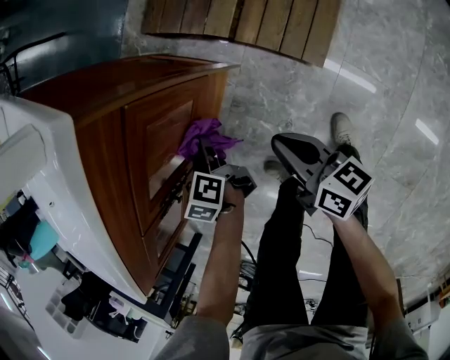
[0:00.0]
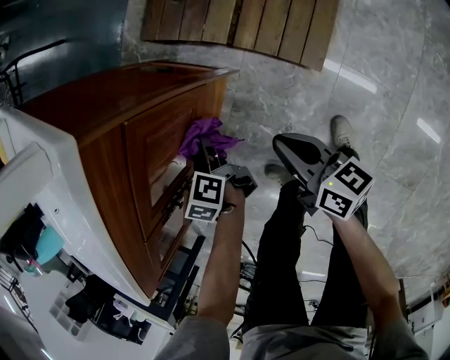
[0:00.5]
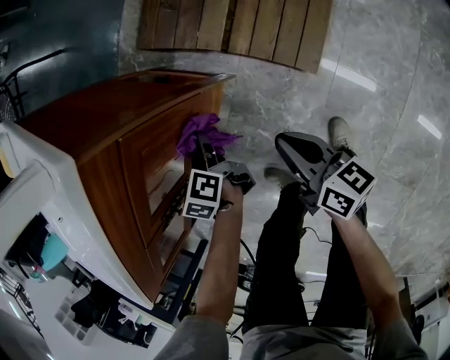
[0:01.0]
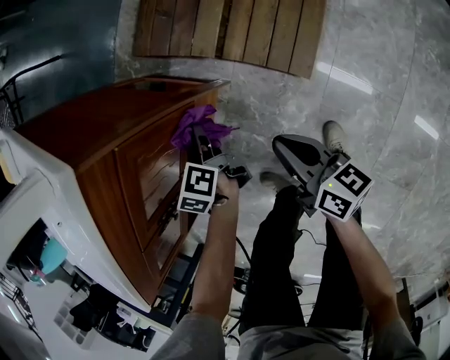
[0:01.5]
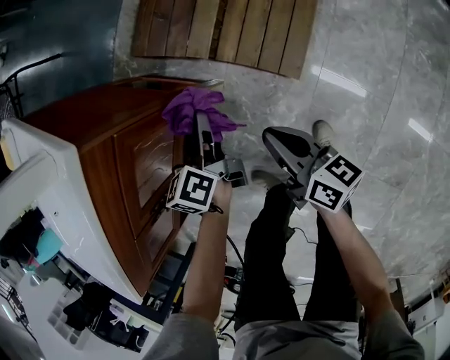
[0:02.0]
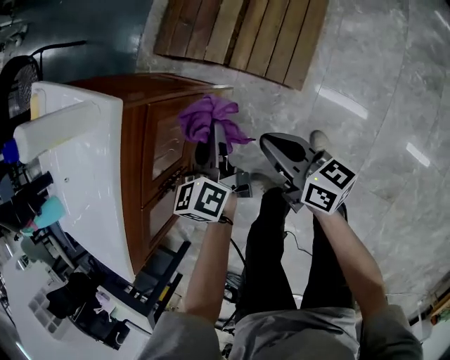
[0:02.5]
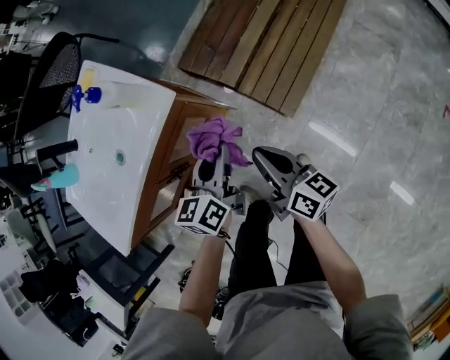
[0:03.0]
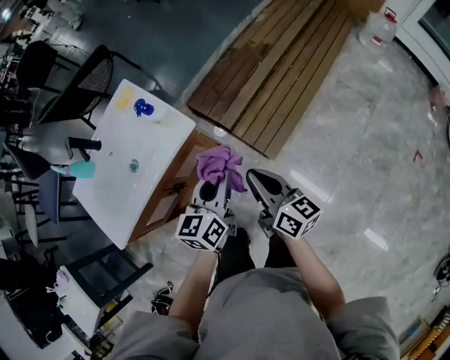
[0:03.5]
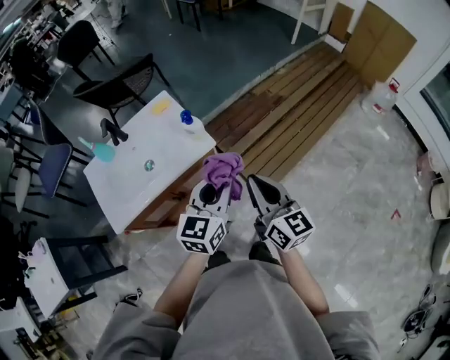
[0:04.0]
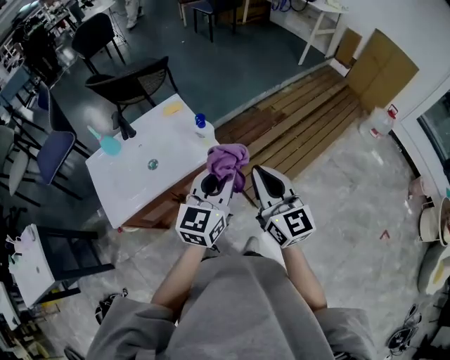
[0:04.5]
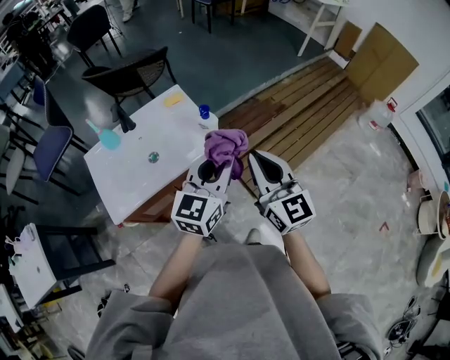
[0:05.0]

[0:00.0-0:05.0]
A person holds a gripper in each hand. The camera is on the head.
0.0 to 2.5 s: The left gripper moves upward and to the right, some 25 cm, and rotates about 30 degrees; the right gripper is displaced upward and to the right by about 10 cm.
2.5 to 5.0 s: The grippers both shift upward by some 50 cm. The left gripper swivels roughly 40 degrees. Meanwhile the right gripper twists about 60 degrees counterclockwise, seen from behind.

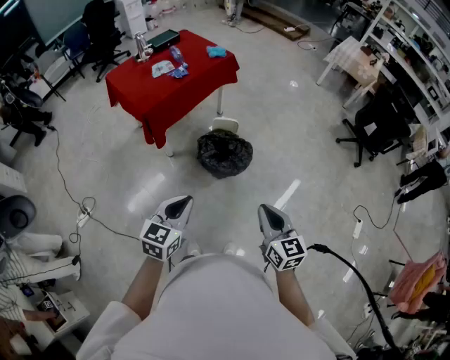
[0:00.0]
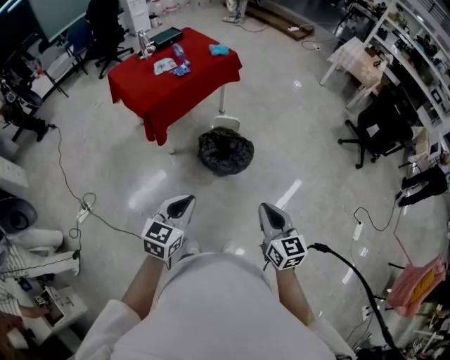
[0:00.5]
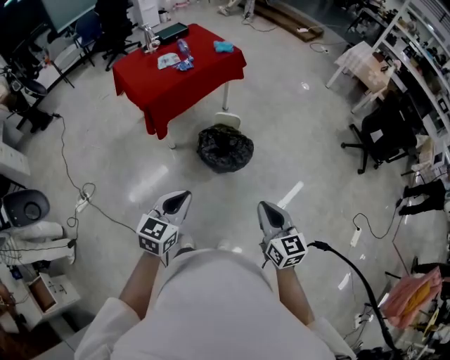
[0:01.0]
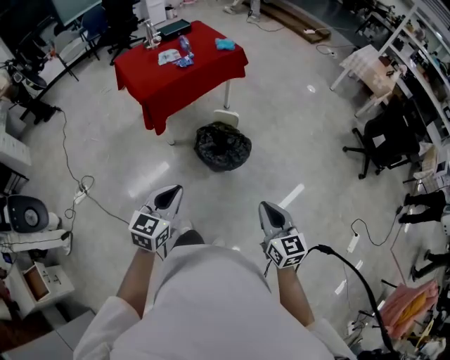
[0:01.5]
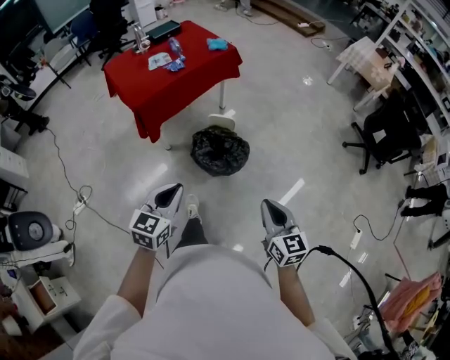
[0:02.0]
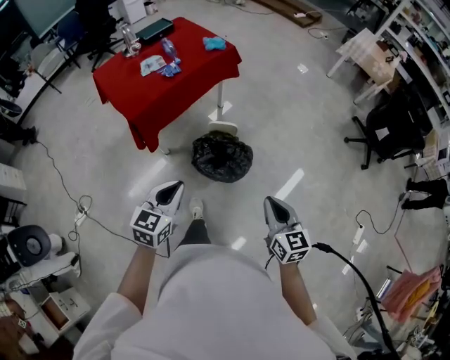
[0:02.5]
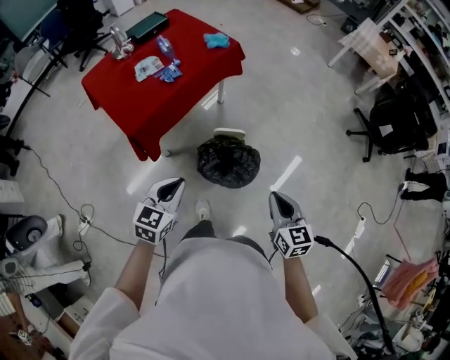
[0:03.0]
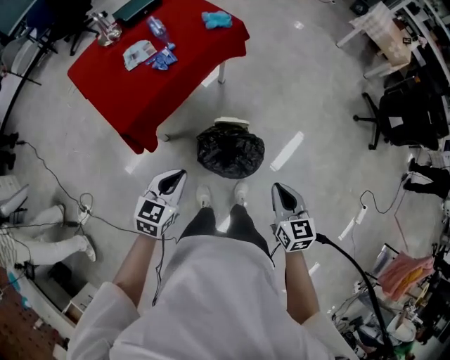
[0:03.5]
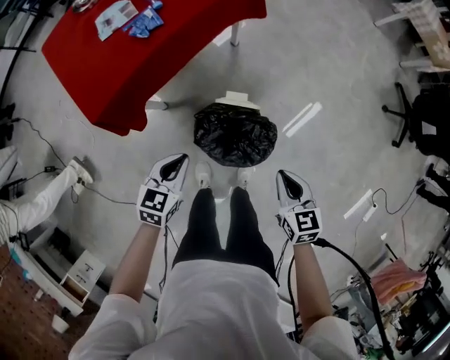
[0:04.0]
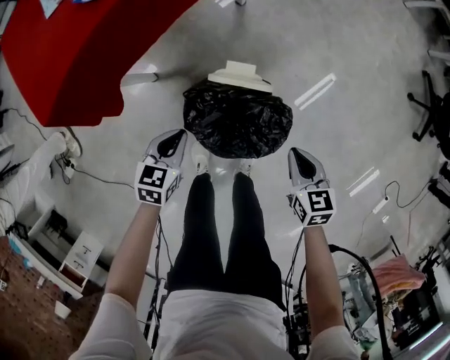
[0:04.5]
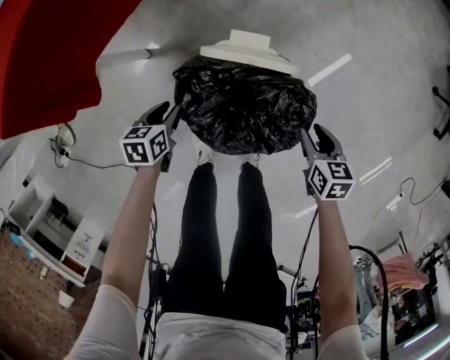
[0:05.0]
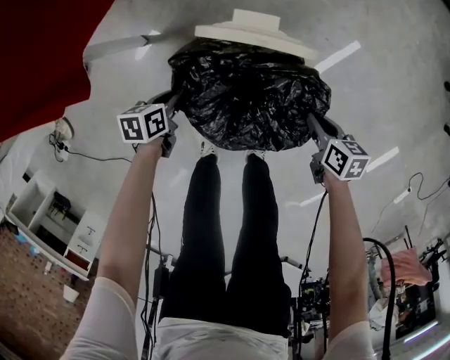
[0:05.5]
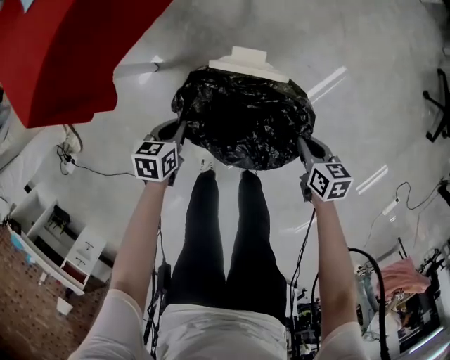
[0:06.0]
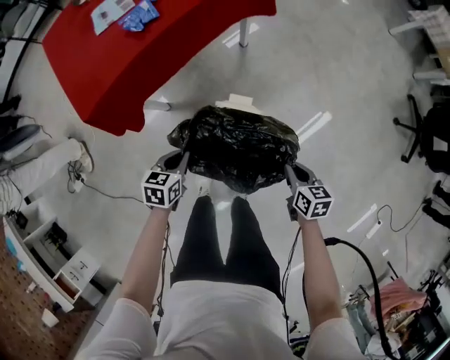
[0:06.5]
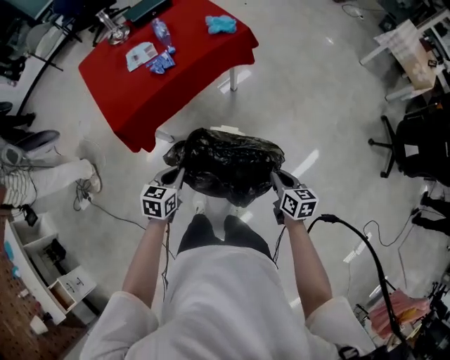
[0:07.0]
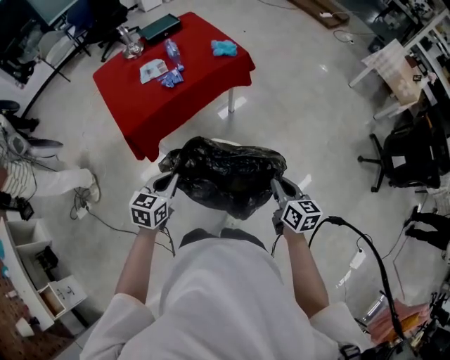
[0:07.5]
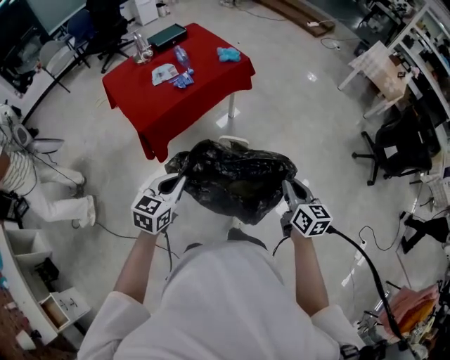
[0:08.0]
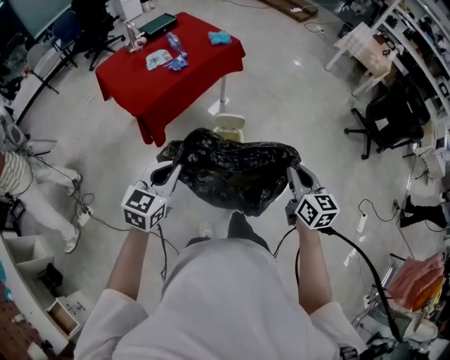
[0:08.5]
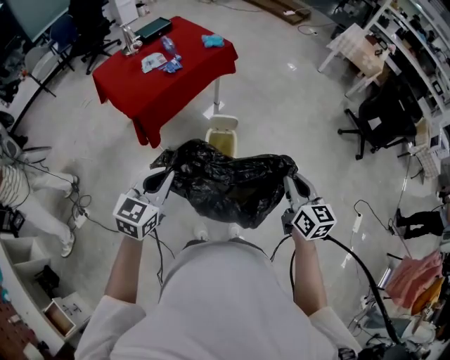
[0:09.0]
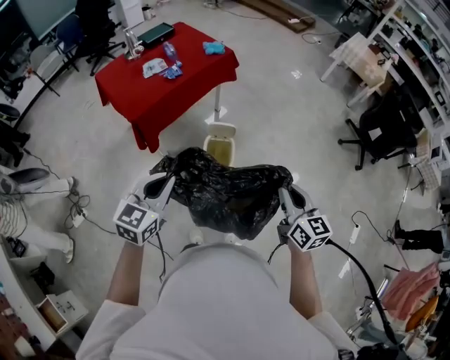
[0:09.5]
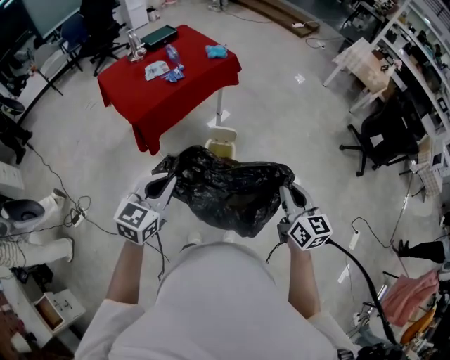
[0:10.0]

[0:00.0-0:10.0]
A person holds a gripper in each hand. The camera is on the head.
0.0 to 2.0 s: The right gripper is displaced to the right and forward by approximately 10 cm. The left gripper goes some 10 cm forward and to the right.
2.0 to 4.0 s: The grippers both shift forward and downward by some 50 cm. The right gripper rotates about 20 degrees, while the left gripper swivels roughly 20 degrees.
4.0 to 6.0 s: Both grippers travel together downward, roughly 35 cm. The left gripper turns by approximately 30 degrees, and opens, then closes again. The right gripper changes its angle by some 20 degrees, and opens and closes again.
6.0 to 8.0 s: Both grippers travel together upward, some 60 cm. The left gripper angles its fingers upward, by roughly 30 degrees, while the right gripper tilts its fingers about 30 degrees upward.
8.0 to 10.0 s: The two grippers go roughly 15 cm backward and upward.

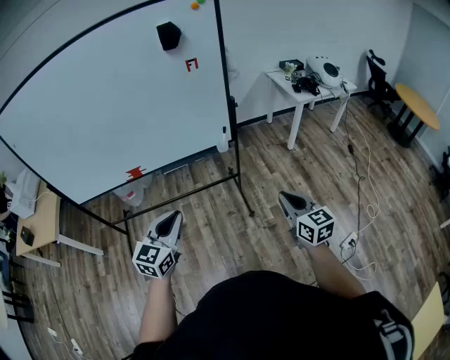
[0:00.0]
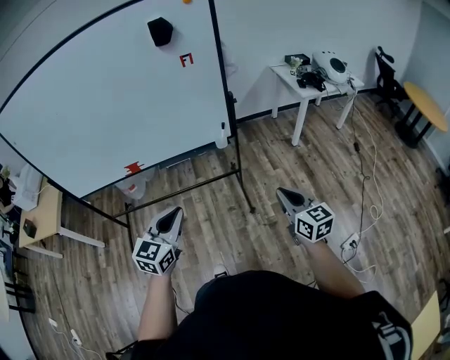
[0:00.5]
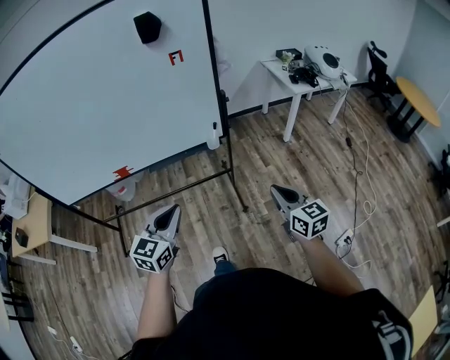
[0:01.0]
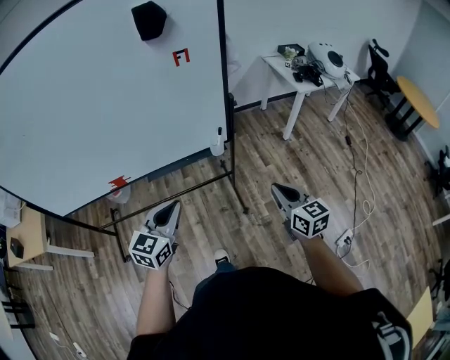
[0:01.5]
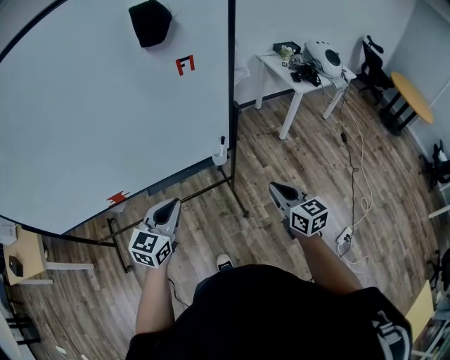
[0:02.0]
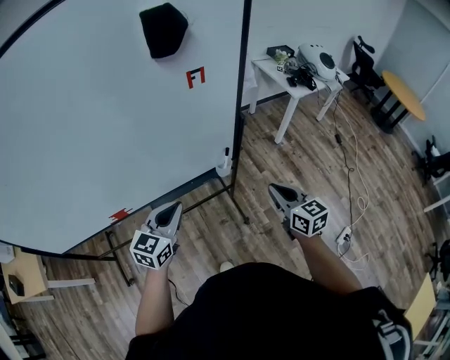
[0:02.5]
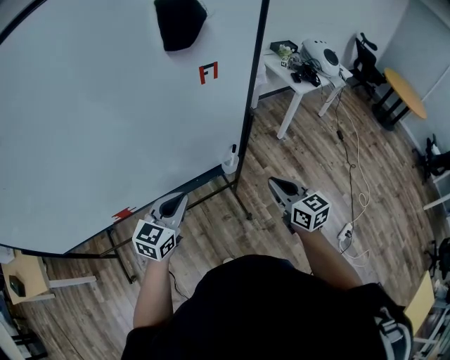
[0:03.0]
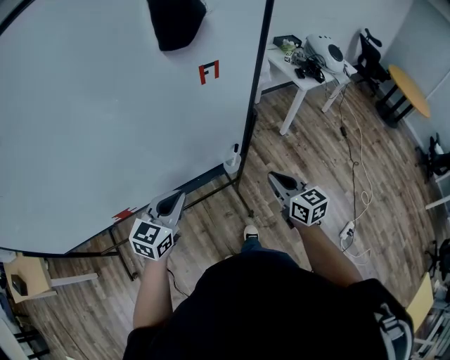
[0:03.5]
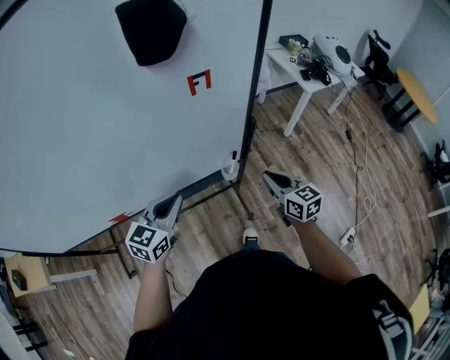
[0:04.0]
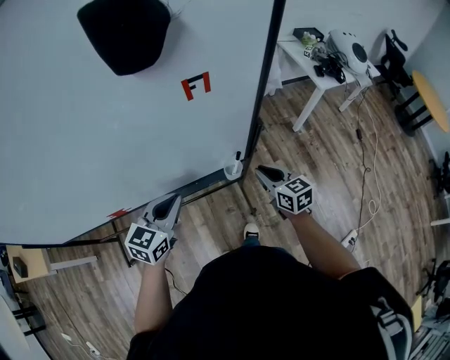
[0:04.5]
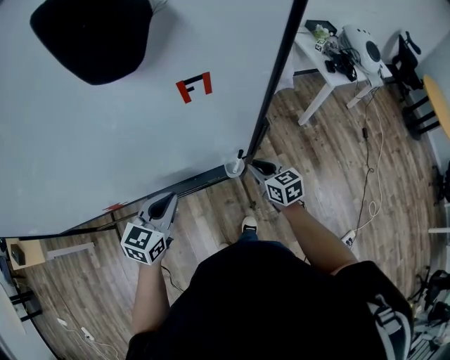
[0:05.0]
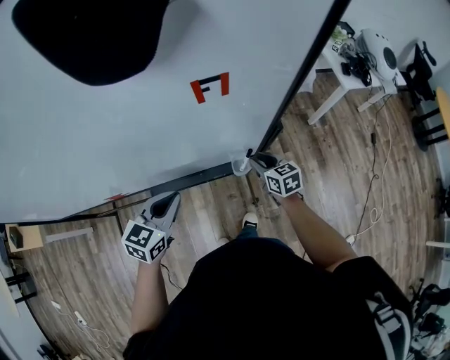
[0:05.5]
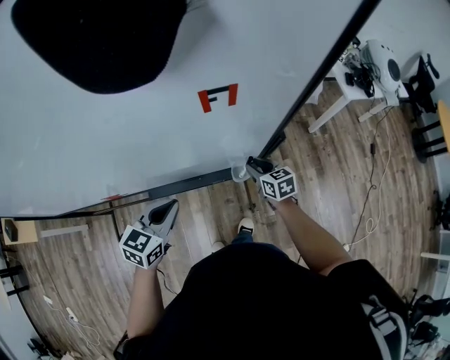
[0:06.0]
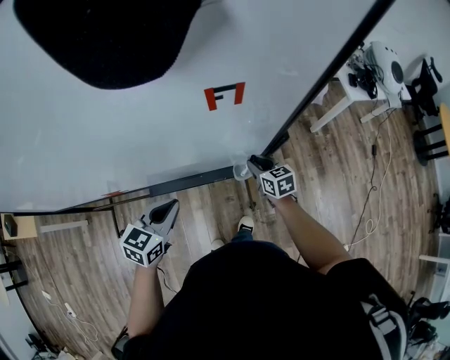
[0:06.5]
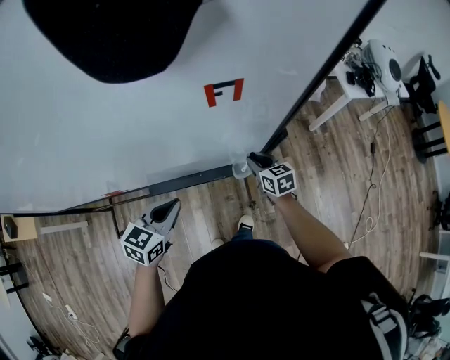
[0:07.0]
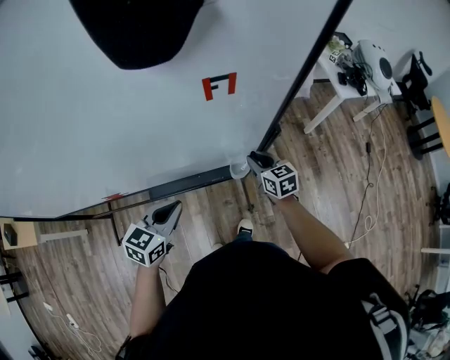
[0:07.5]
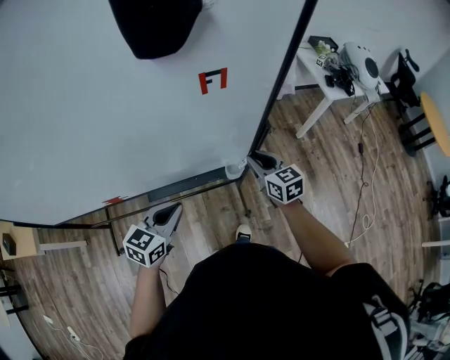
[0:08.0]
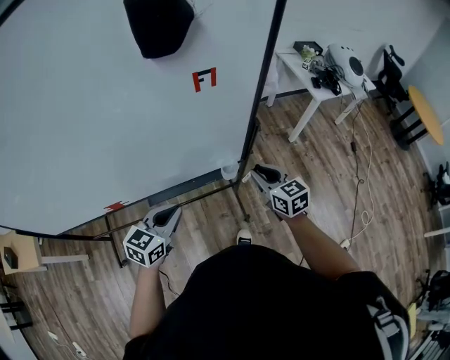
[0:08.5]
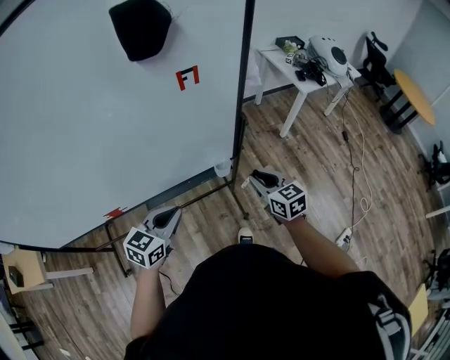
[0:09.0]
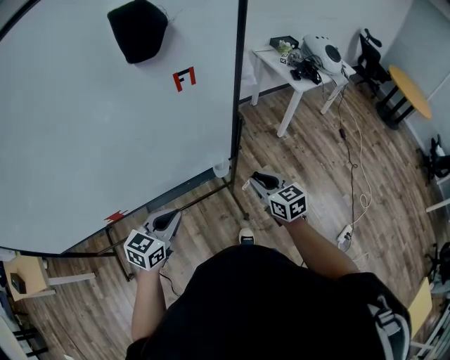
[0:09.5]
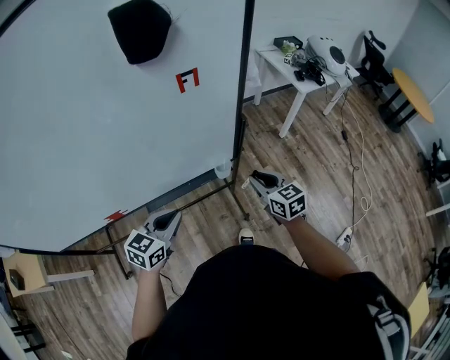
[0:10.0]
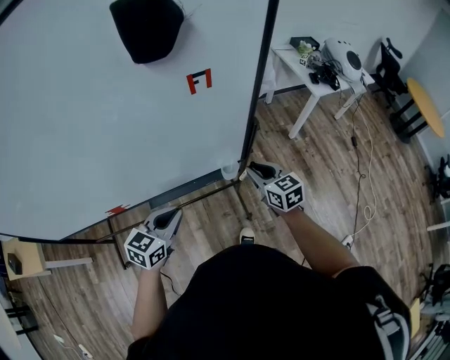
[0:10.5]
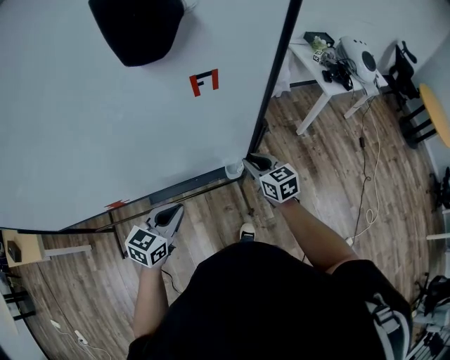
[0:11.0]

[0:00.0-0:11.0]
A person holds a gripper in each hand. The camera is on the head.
0.0 to 2.0 s: Both grippers travel together forward, roughly 25 cm.
2.0 to 3.5 s: Both grippers move forward and to the left, roughly 10 cm.
3.5 to 5.5 s: The left gripper goes some 10 cm forward and downward. The right gripper is displaced forward and downward by about 25 cm, rotates about 20 degrees, and opens.
5.5 to 7.5 s: The grippers make only small movements.
7.5 to 9.0 s: The left gripper shifts approximately 5 cm backward, while the right gripper moves backward and upward, approximately 20 cm.
9.0 to 11.0 s: The right gripper is displaced forward and to the left by about 10 cm.

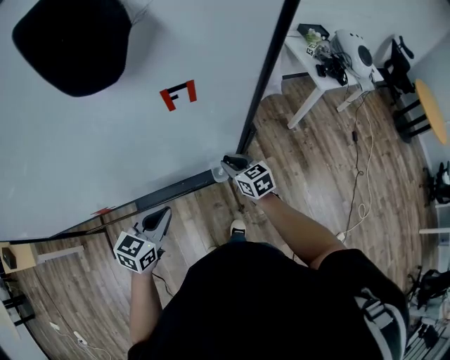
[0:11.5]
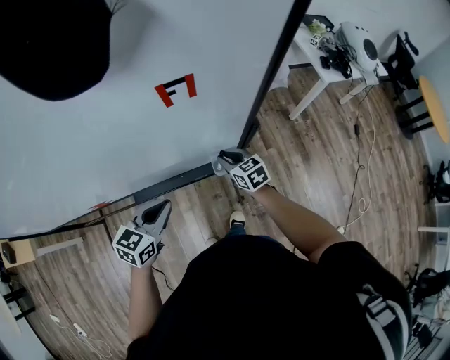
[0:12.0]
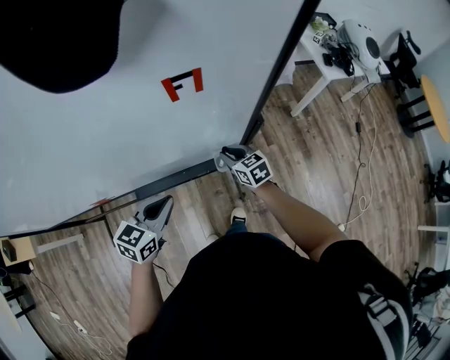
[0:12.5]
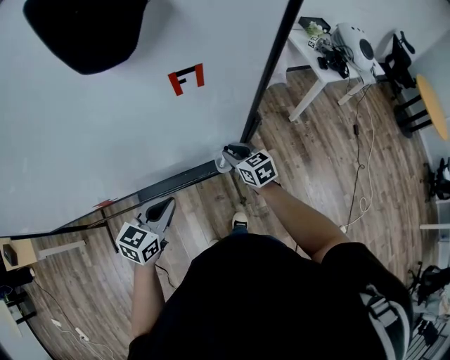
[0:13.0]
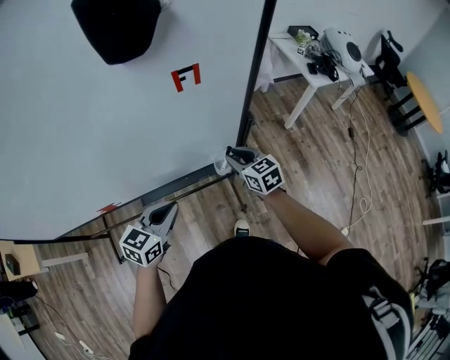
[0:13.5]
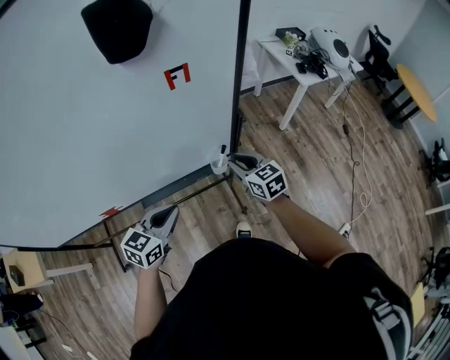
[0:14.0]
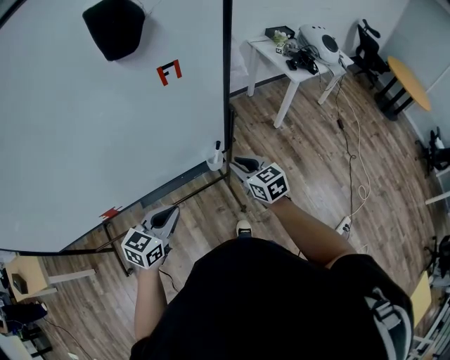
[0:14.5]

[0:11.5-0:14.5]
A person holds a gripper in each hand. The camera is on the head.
11.5 to 13.0 s: The grippers stay close to where they were, moving slightly.
13.0 to 14.5 s: The left gripper goes approximately 10 cm backward. The right gripper goes about 15 cm backward, upward and to the right.
